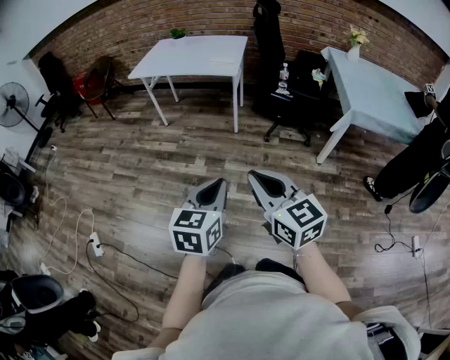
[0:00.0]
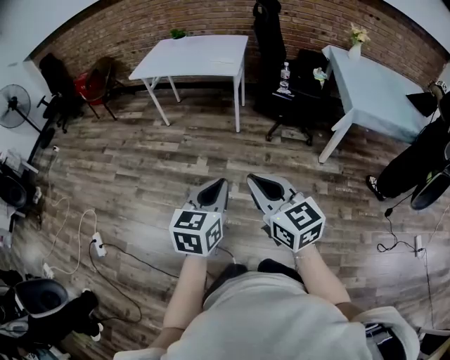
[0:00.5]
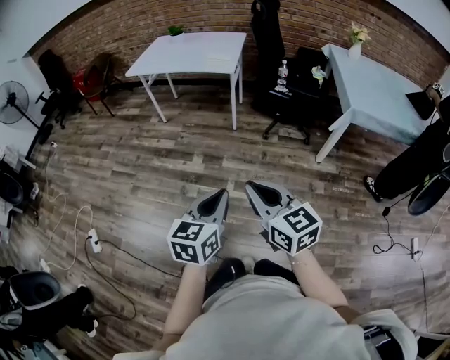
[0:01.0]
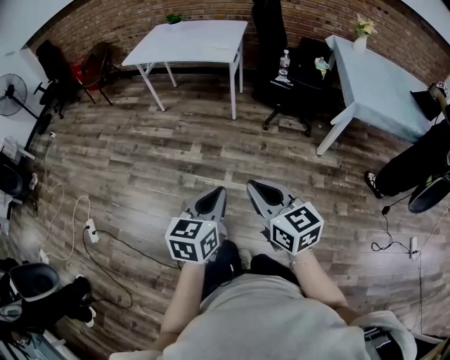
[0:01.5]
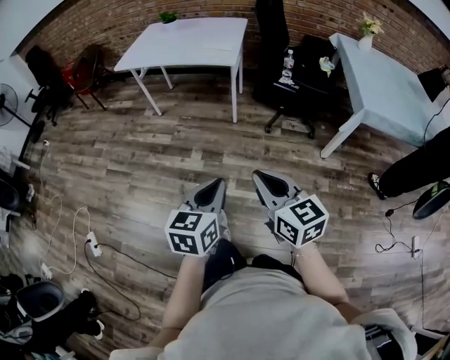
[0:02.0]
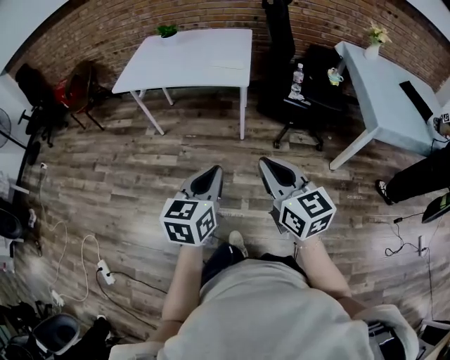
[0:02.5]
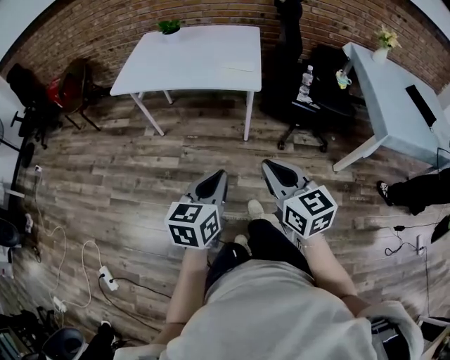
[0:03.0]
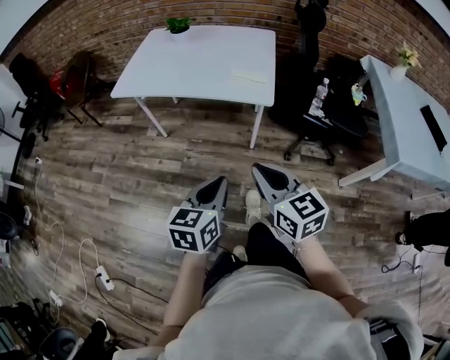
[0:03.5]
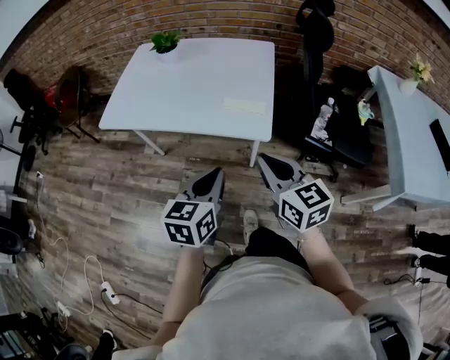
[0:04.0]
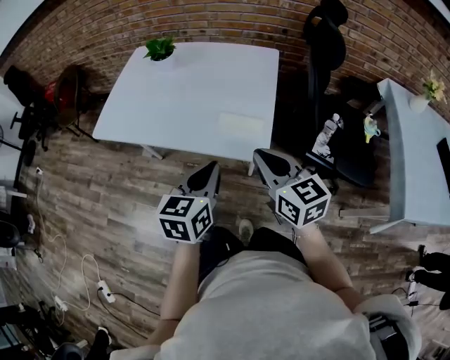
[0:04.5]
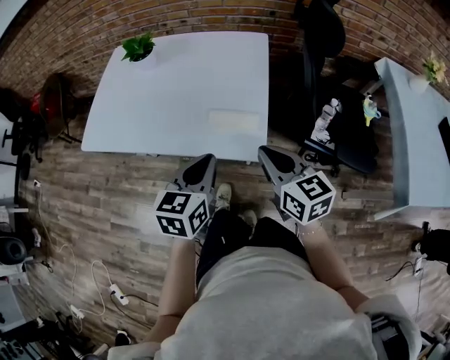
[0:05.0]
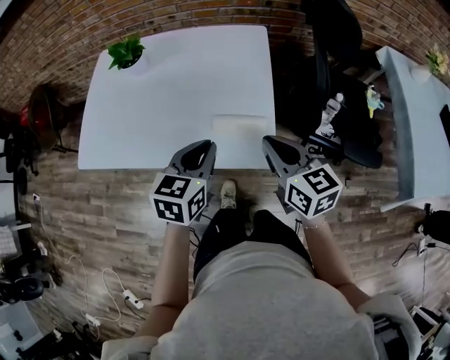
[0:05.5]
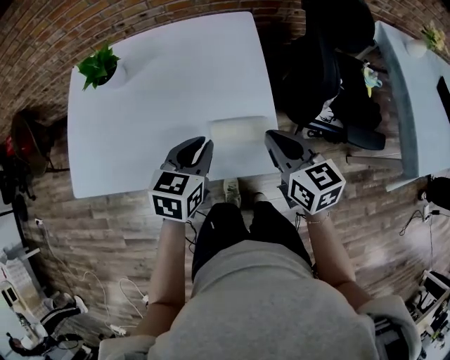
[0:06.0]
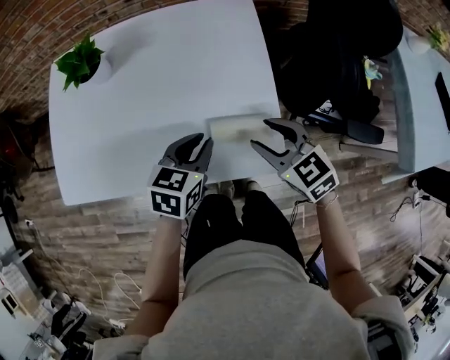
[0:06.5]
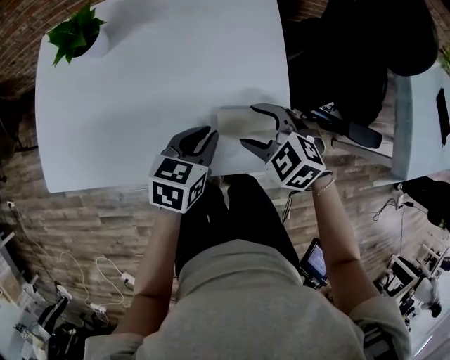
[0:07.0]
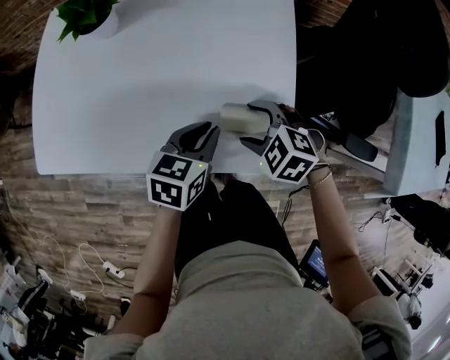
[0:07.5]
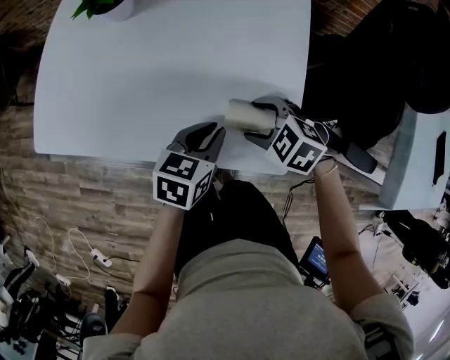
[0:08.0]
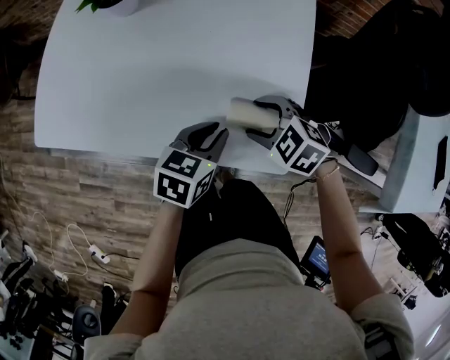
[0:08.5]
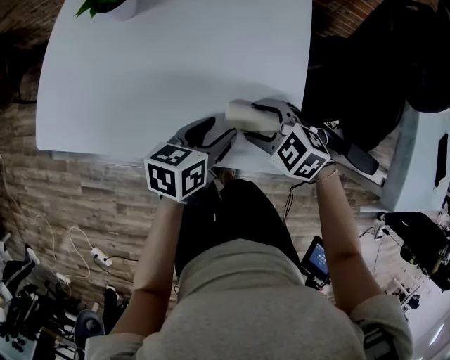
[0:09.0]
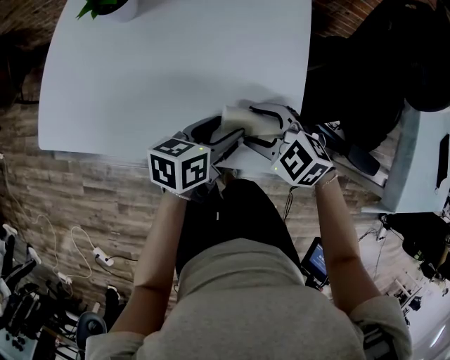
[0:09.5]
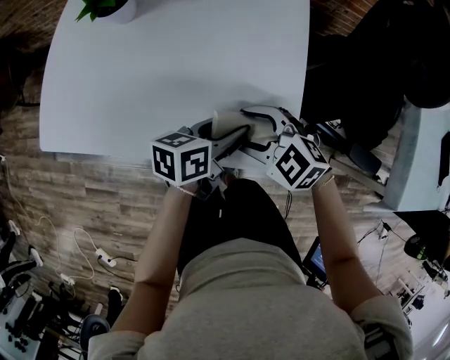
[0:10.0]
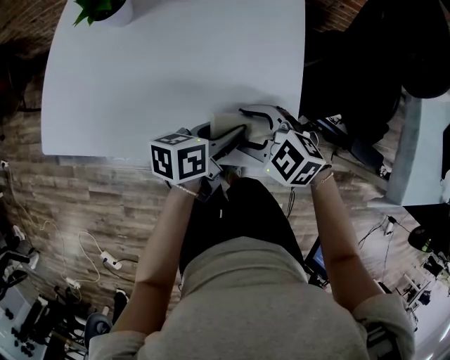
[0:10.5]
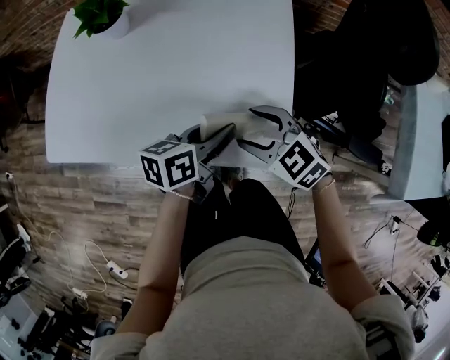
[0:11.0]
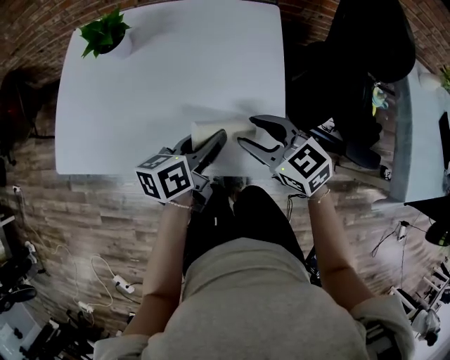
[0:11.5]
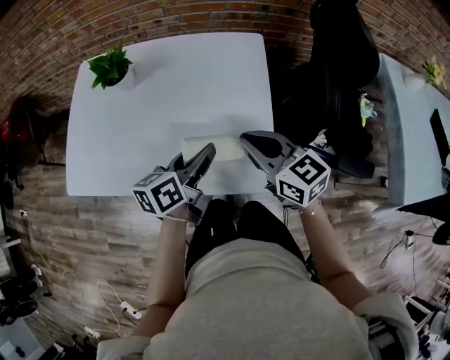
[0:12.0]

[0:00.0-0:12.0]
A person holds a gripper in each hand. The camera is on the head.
0:00.0 to 0:02.0: Both grippers move forward and downward, roughly 15 cm.
0:02.0 to 0:04.0: The pair of grippers is taken forward, some 60 cm.
0:04.0 to 0:06.0: The two grippers go roughly 30 cm forward. The left gripper changes its angle by about 30 degrees.
0:06.0 to 0:08.0: The right gripper heads downward and to the left, covering approximately 15 cm, points its fingers roughly 40 degrees further downward, and opens up; the left gripper travels downward by about 10 cm.
0:08.0 to 0:10.0: The right gripper moves some 5 cm, while the left gripper changes its angle by roughly 30 degrees, and opens its fingers.
0:10.0 to 0:12.0: The grippers both shift upward by about 10 cm. The right gripper changes its angle by about 50 degrees, and closes.

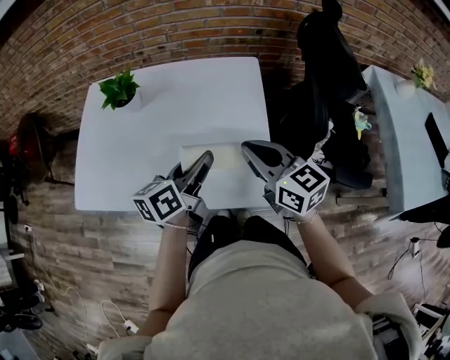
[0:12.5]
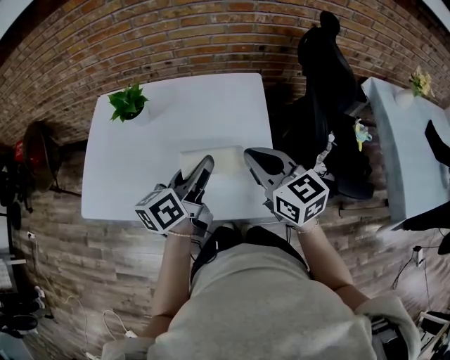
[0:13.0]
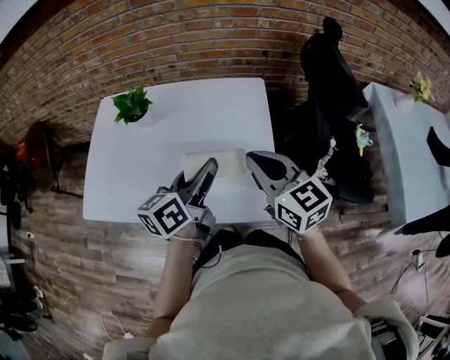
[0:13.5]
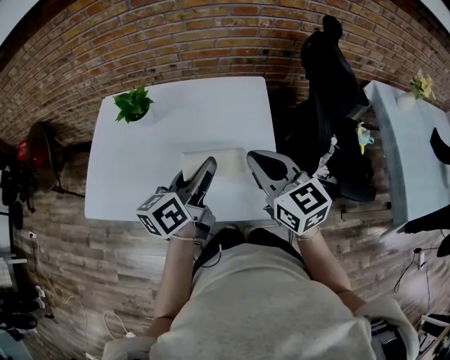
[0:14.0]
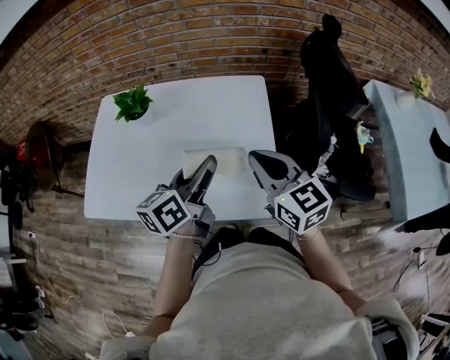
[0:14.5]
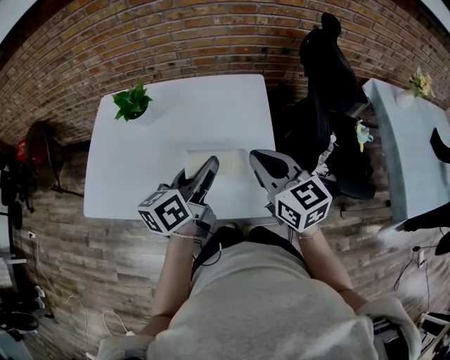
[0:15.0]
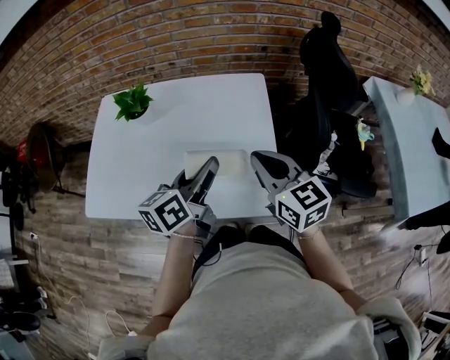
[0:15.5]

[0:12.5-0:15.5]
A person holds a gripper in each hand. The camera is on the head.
0:12.5 to 0:14.0: The left gripper moves upward, about 5 cm.
0:14.0 to 0:15.5: The grippers make only small movements.

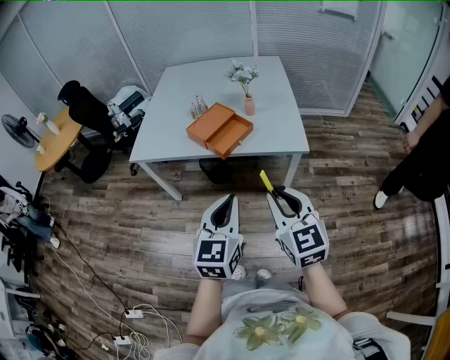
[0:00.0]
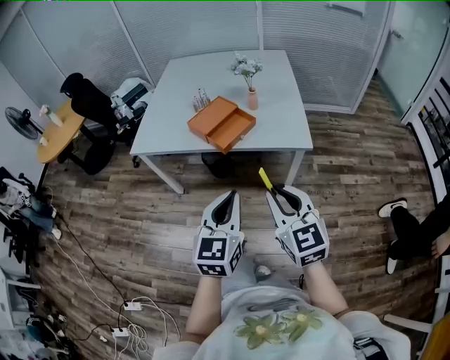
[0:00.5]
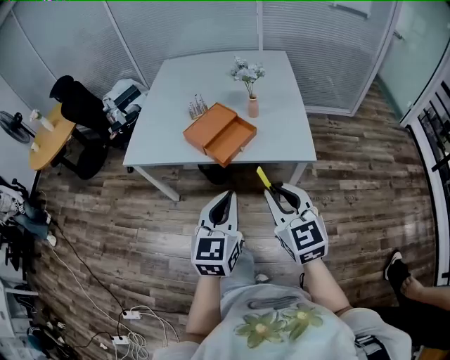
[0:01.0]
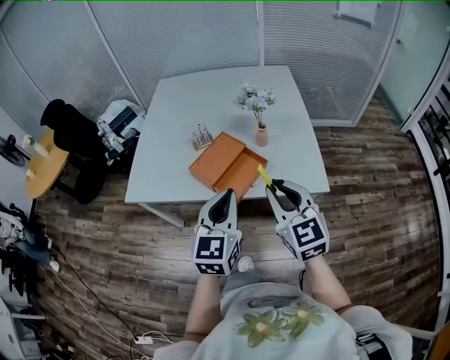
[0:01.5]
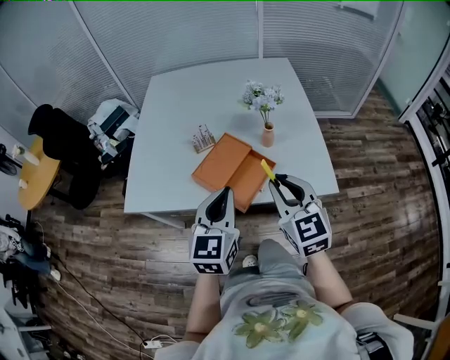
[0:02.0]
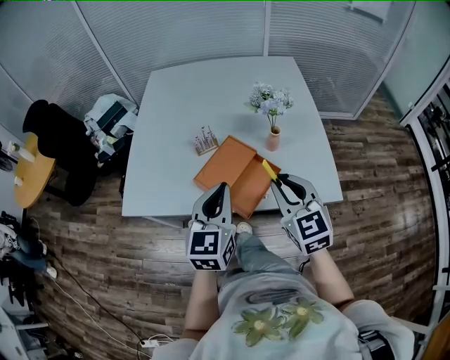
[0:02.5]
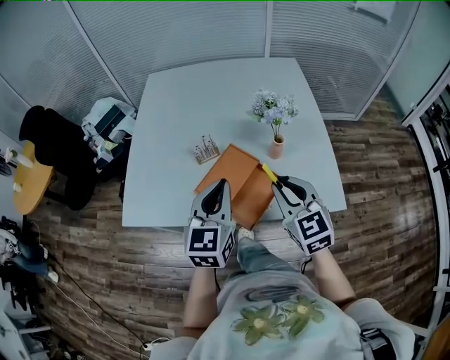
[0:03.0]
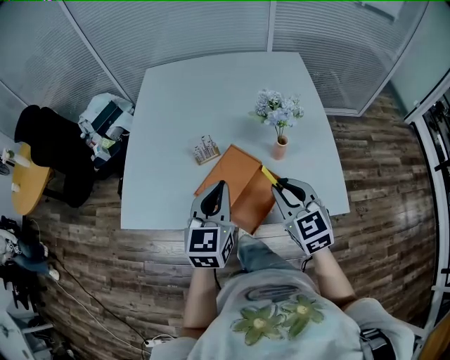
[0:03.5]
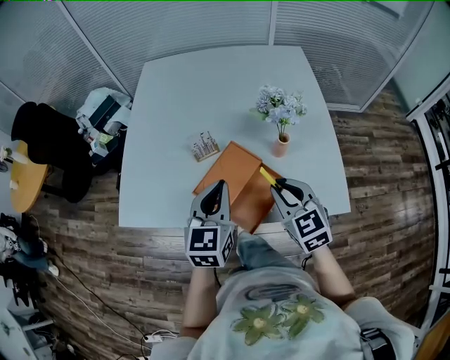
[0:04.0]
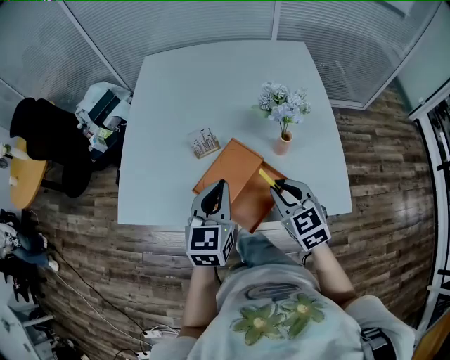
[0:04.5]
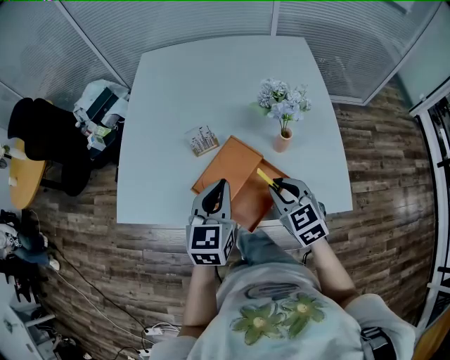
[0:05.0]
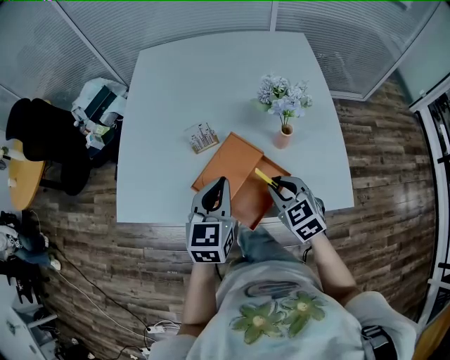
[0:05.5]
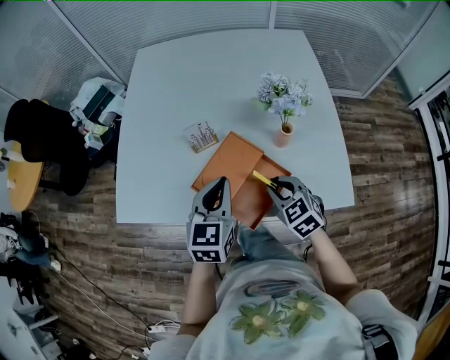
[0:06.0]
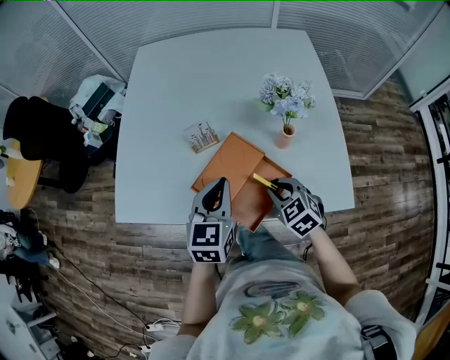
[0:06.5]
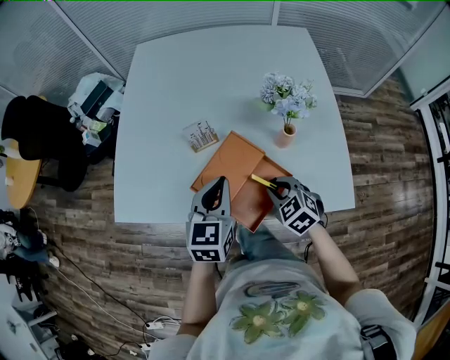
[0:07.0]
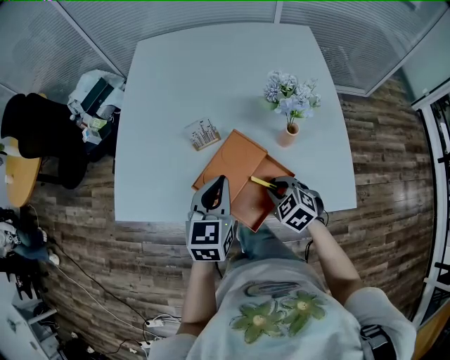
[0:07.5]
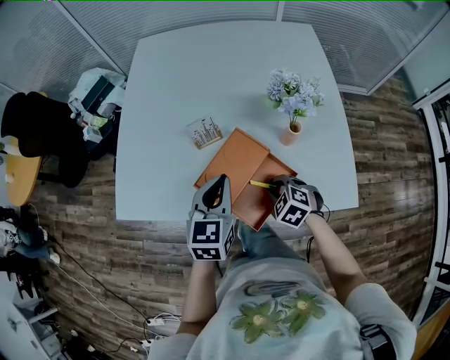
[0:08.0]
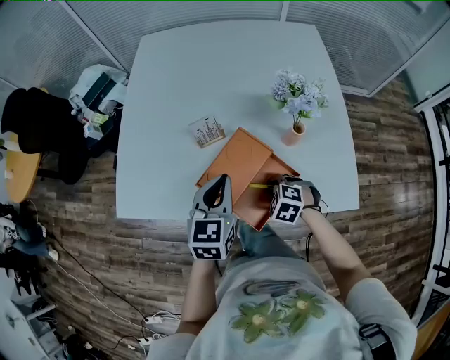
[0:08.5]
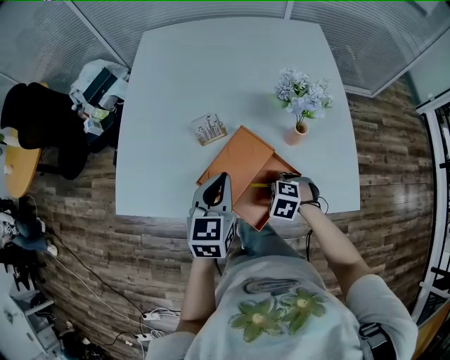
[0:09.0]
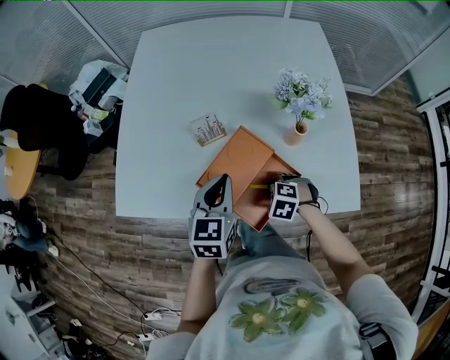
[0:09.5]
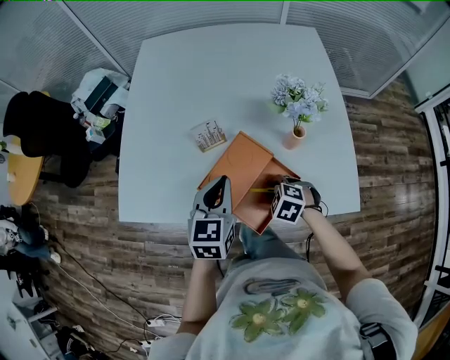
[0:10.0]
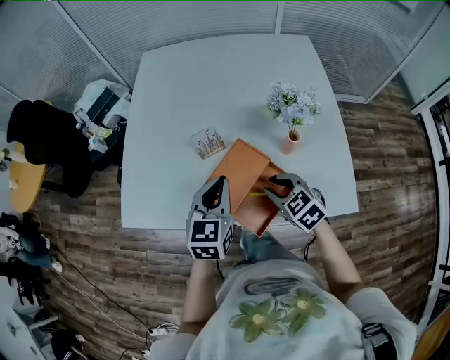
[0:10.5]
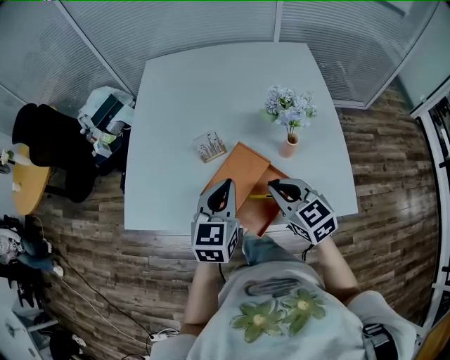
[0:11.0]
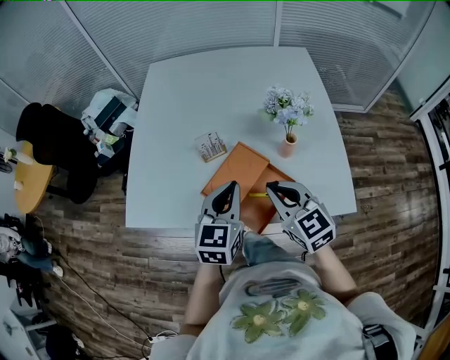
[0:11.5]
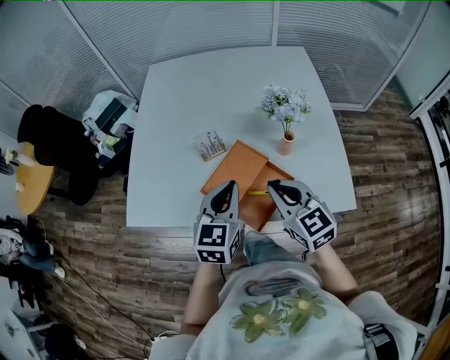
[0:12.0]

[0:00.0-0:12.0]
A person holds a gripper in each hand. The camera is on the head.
0:00.0 to 0:02.0: Both grippers move forward, about 35 cm.
0:02.0 to 0:04.0: The right gripper moves forward and downward, approximately 15 cm; the left gripper travels forward by approximately 15 cm.
0:04.0 to 0:06.0: The right gripper heads downward, covering some 10 cm.
0:06.0 to 0:08.0: The right gripper is displaced downward by approximately 10 cm, and swivels approximately 30 degrees.
0:08.0 to 0:10.0: The grippers move only a little.
0:10.0 to 0:12.0: The right gripper moves upward, roughly 25 cm, tilts its fingers some 50 degrees upward, and closes up. The left gripper heads upward and backward, covering roughly 10 cm.
